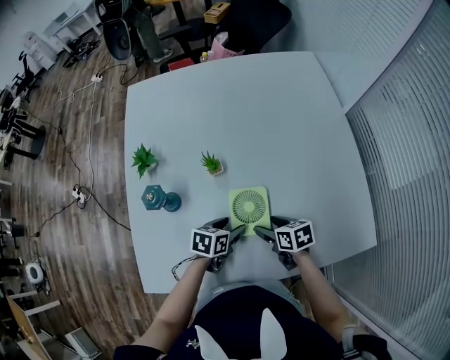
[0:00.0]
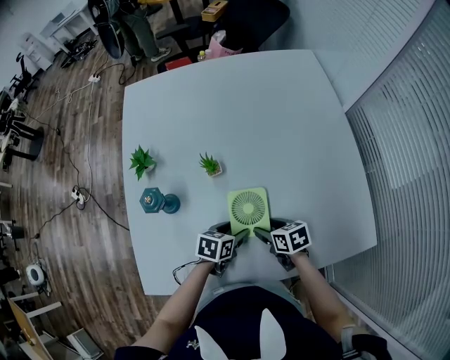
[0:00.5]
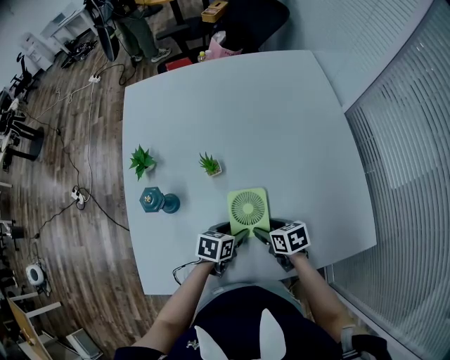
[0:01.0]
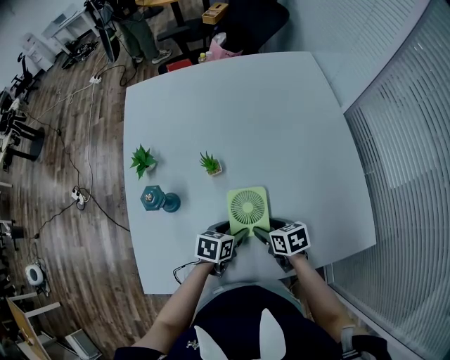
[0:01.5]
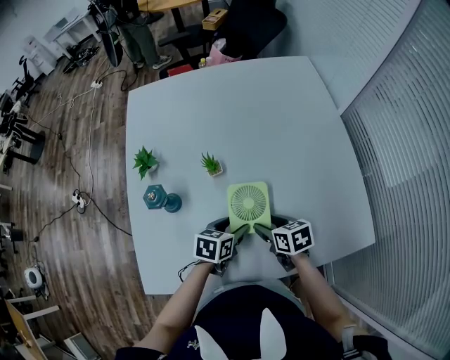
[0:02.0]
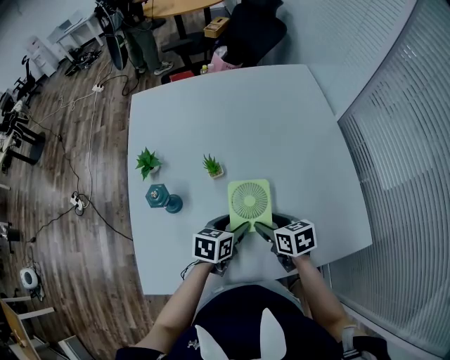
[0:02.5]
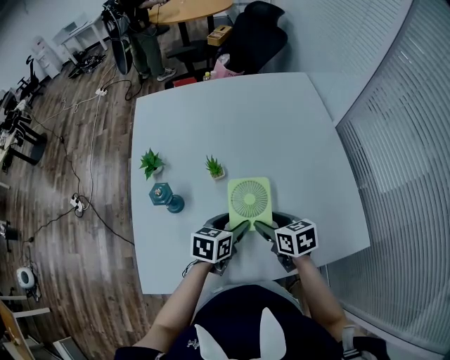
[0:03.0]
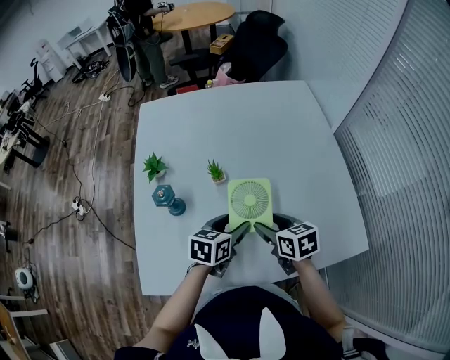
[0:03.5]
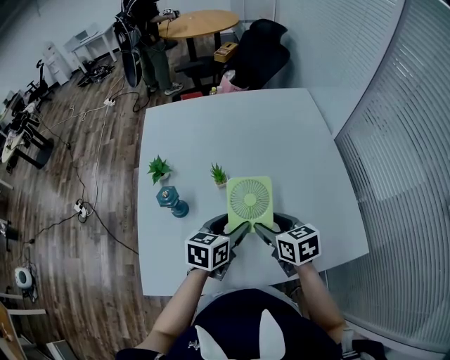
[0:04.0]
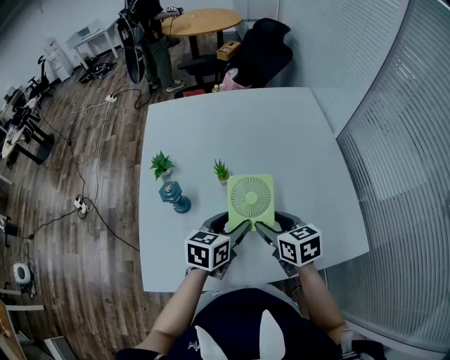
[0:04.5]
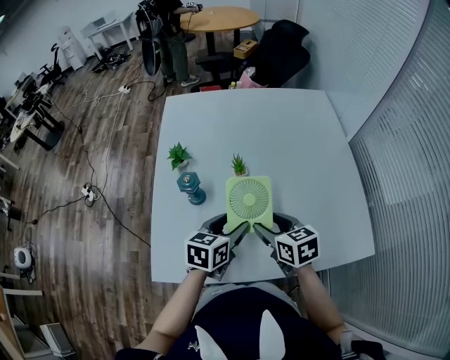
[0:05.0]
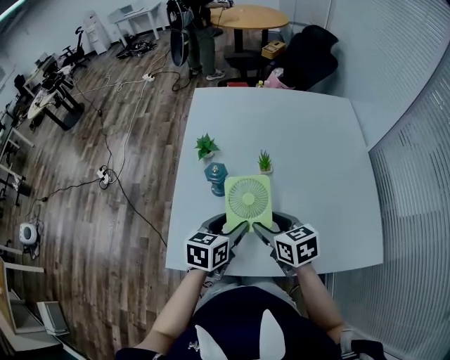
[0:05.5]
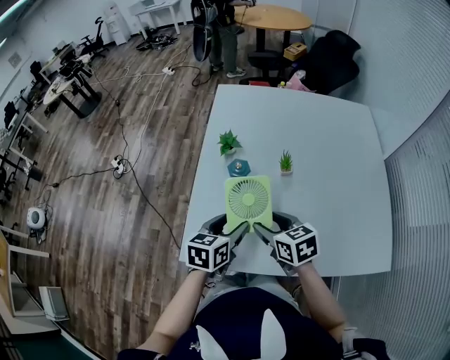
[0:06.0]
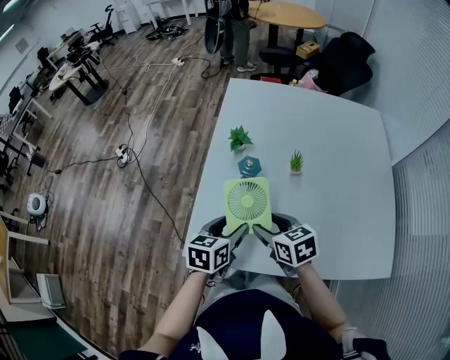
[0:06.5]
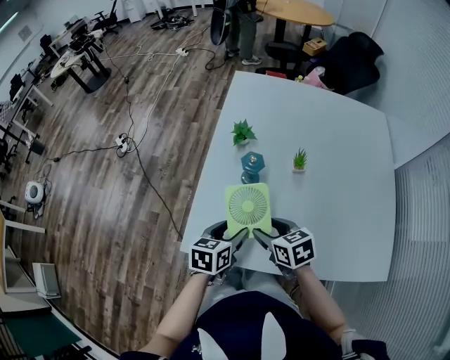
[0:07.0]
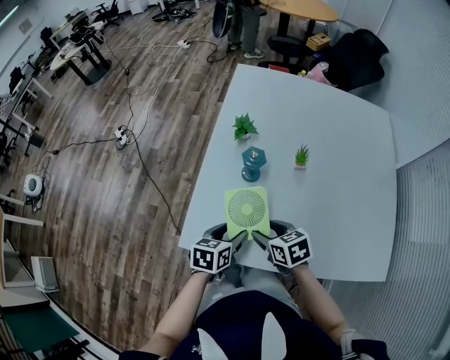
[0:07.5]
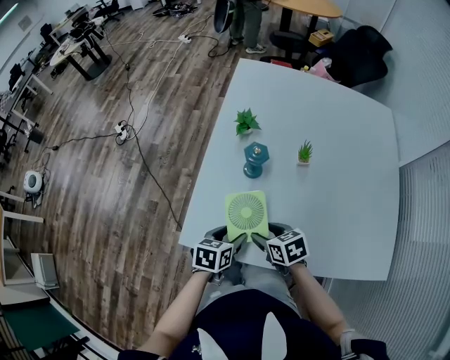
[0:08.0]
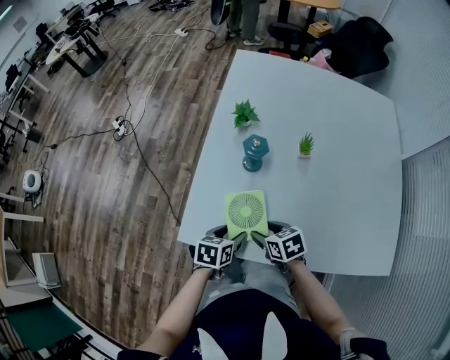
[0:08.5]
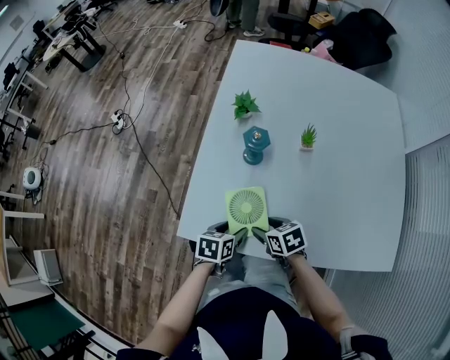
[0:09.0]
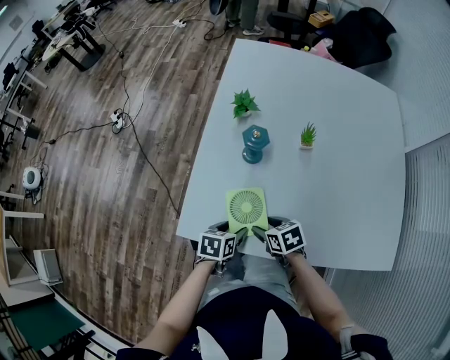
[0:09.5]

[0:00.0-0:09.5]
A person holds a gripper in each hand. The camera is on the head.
0:00.0 to 0:02.0: The grippers move only a little.
0:02.0 to 0:04.0: Both grippers travel together upward, approximately 15 cm.
0:04.0 to 0:05.5: The left gripper is displaced to the left and backward by about 15 cm. Meanwhile the right gripper shifts approximately 15 cm to the left.
0:05.5 to 0:07.5: The two grippers go roughly 15 cm to the left and downward.
0:07.5 to 0:09.5: The grippers both shift downward by some 10 cm.

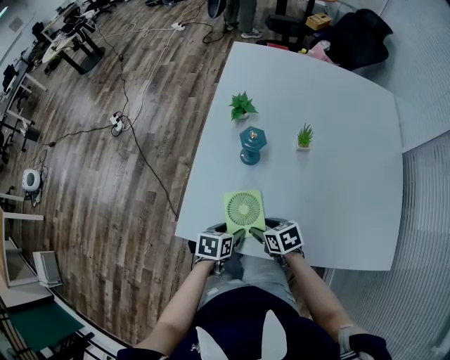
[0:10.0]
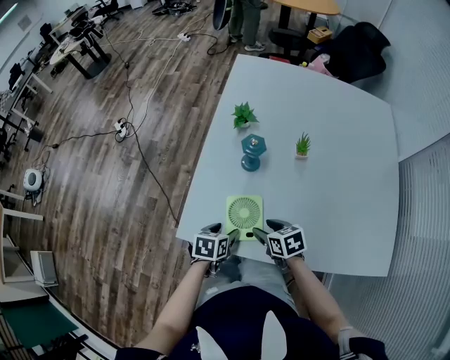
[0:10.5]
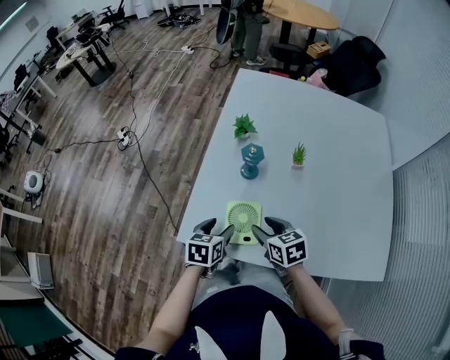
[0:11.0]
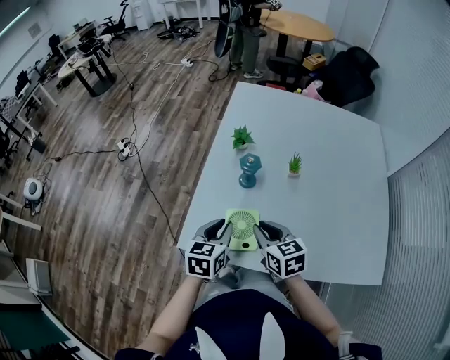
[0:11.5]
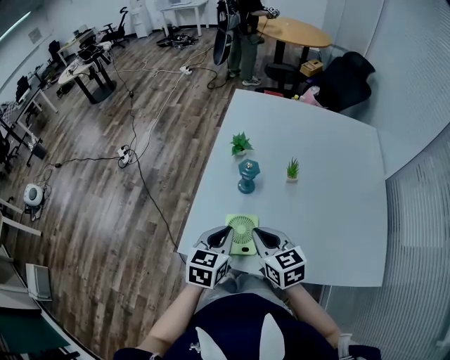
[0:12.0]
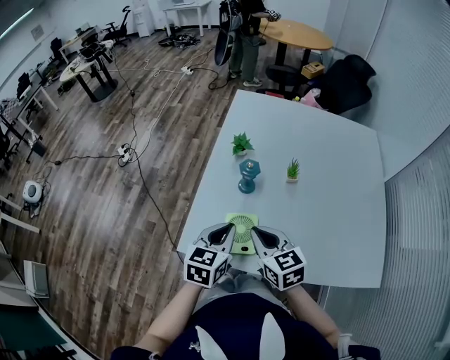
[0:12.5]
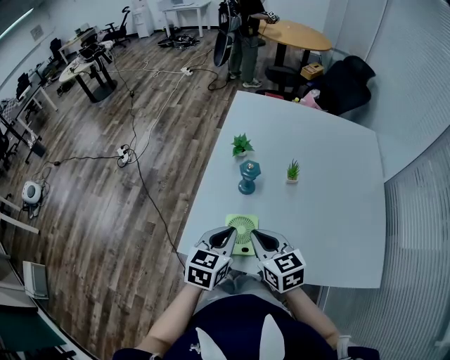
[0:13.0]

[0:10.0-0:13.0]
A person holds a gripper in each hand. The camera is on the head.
0:10.0 to 0:11.5: The two grippers go about 15 cm upward. The right gripper swivels roughly 30 degrees, and closes up; the left gripper changes its angle by roughly 30 degrees, and closes up.
0:11.5 to 0:13.0: The left gripper moves some 5 cm; the right gripper changes place by some 5 cm.

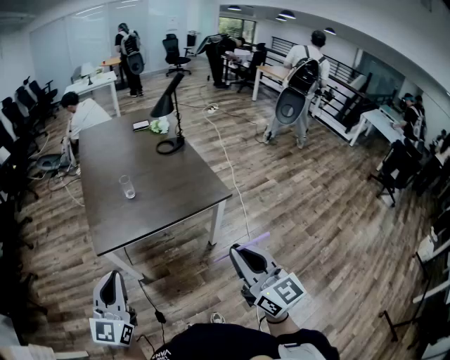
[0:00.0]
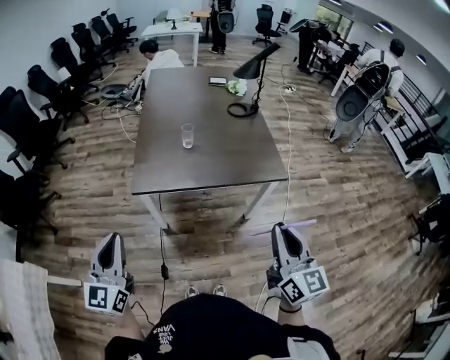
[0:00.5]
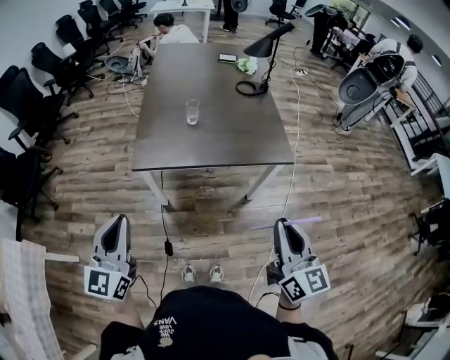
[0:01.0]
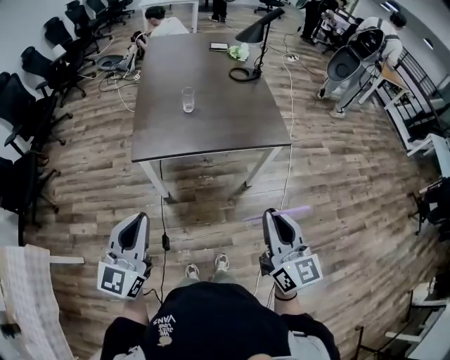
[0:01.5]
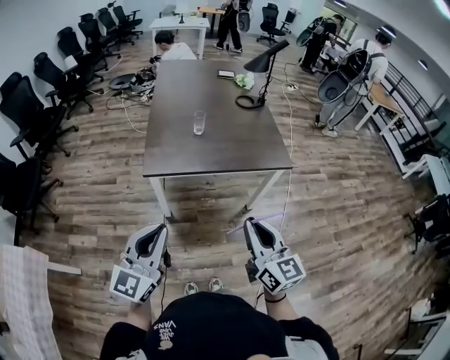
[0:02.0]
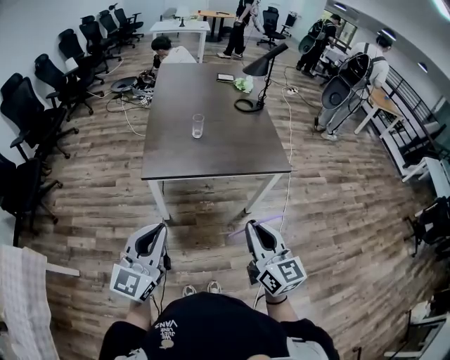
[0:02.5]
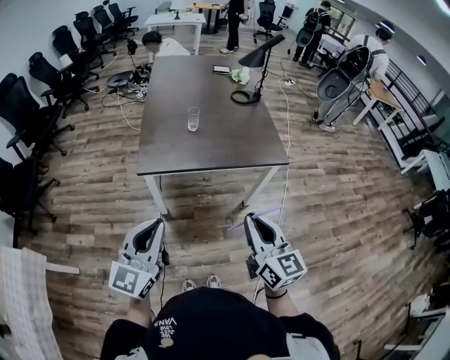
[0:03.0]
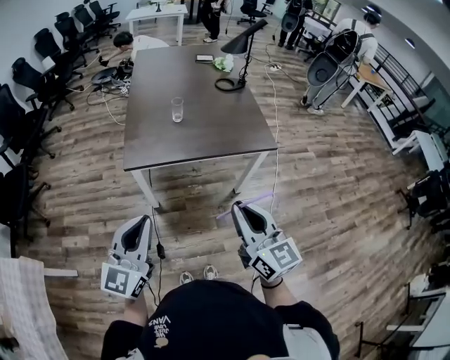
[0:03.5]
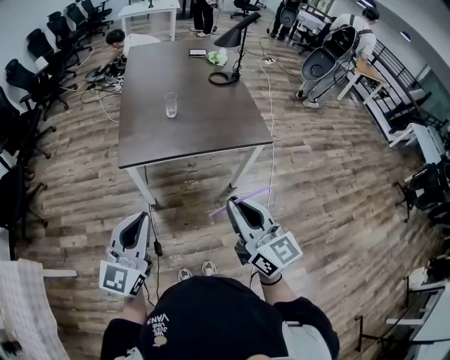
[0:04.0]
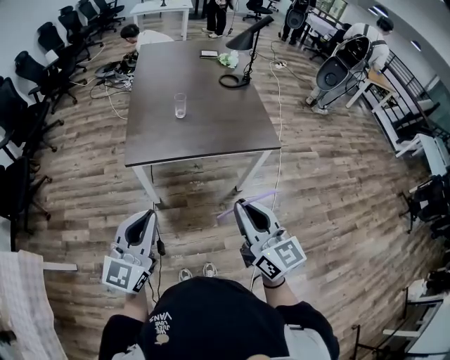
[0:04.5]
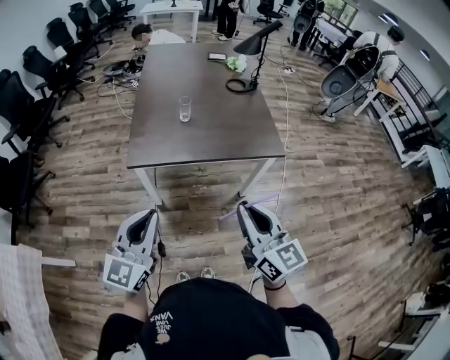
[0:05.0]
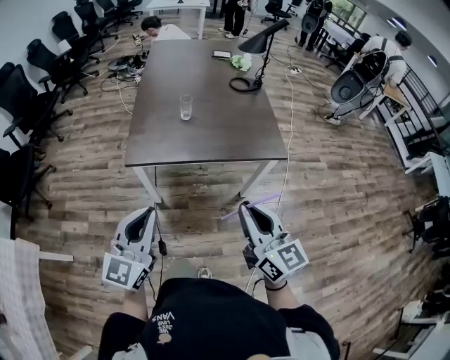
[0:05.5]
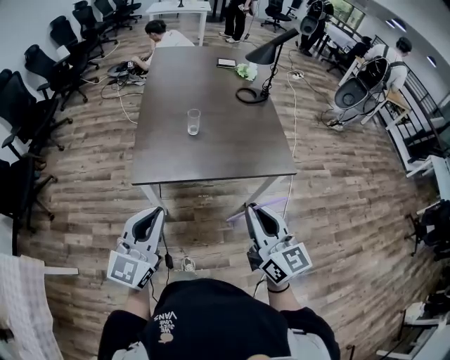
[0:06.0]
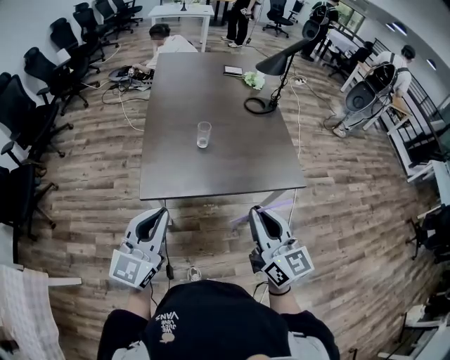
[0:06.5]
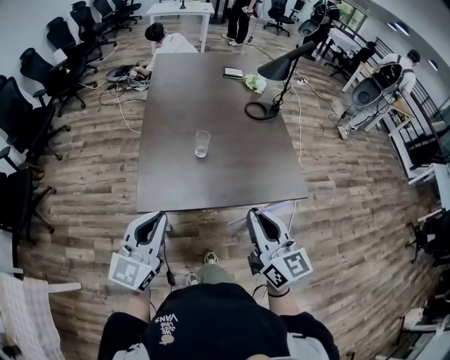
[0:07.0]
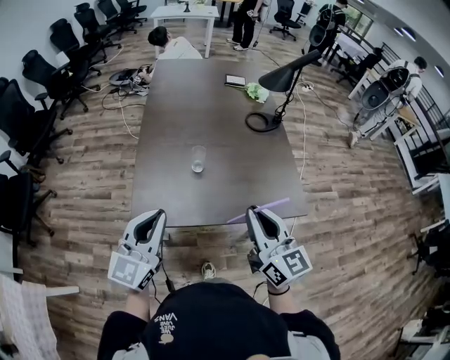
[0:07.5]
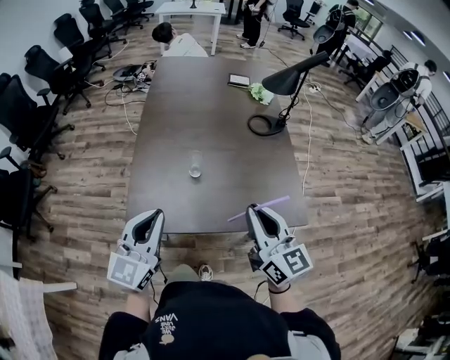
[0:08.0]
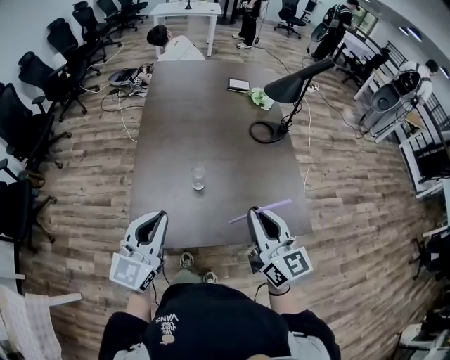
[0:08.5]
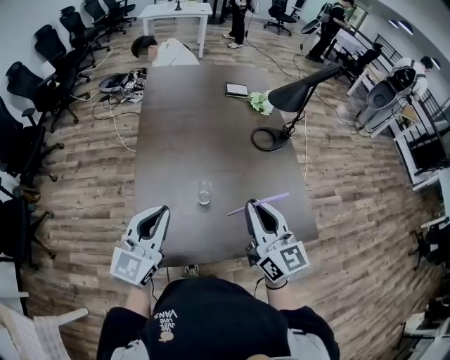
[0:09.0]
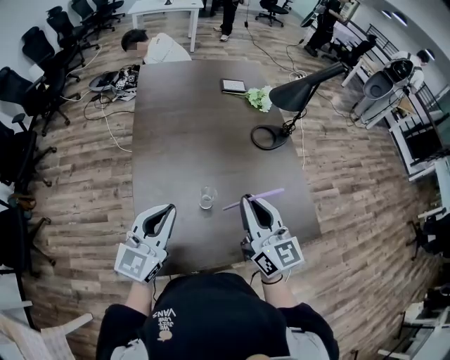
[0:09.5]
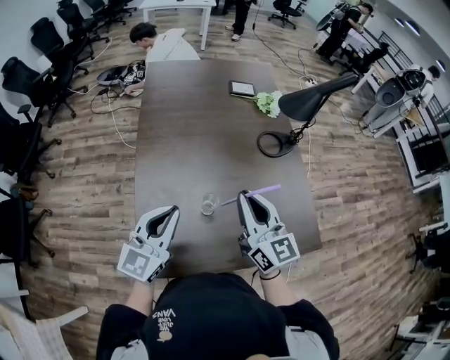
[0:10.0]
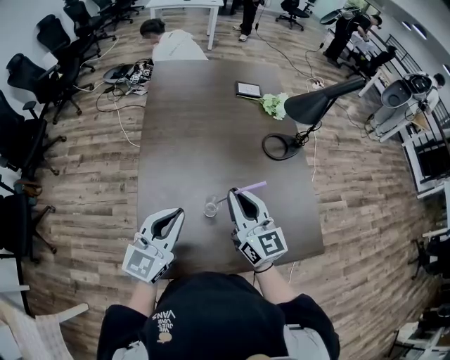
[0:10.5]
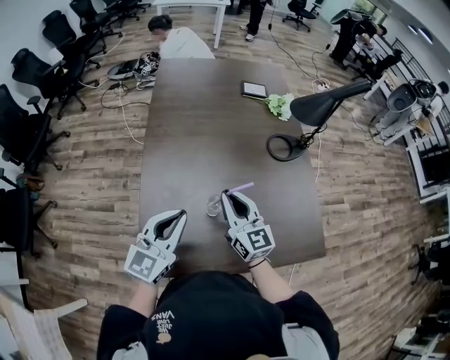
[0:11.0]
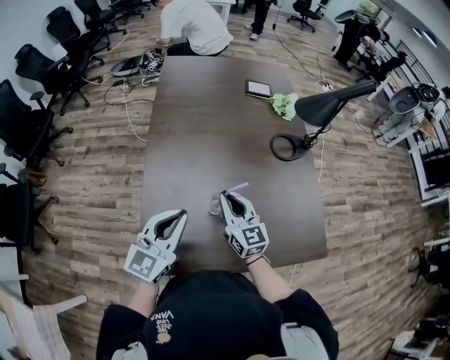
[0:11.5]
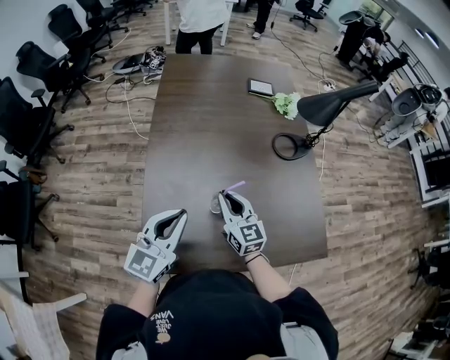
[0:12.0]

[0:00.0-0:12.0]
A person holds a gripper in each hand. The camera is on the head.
0:00.0 to 0:02.0: The right gripper is displaced to the left and downward by some 15 cm, while the left gripper moves approximately 10 cm to the left and comes back.
0:02.0 to 0:04.0: The grippers make only small movements.
0:04.0 to 0:06.0: Both grippers move forward, approximately 15 cm.
0:06.0 to 0:08.0: The two grippers go approximately 25 cm forward.
0:08.0 to 0:10.0: The right gripper is displaced forward and to the left by roughly 25 cm, while the left gripper is displaced forward by approximately 20 cm.
0:10.0 to 0:12.0: The right gripper is displaced downward and to the left by approximately 15 cm.

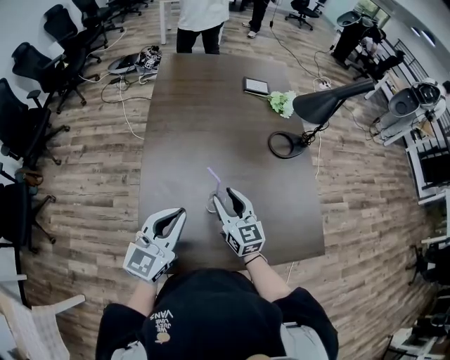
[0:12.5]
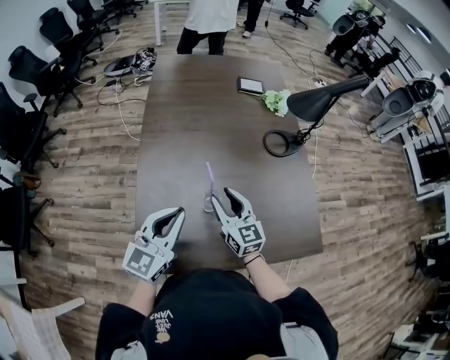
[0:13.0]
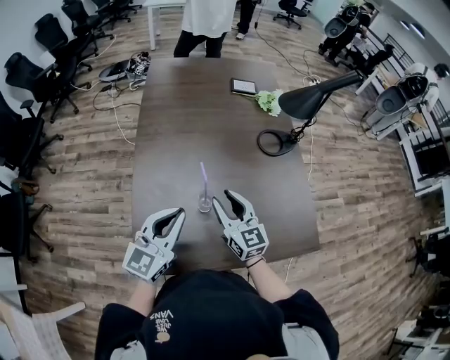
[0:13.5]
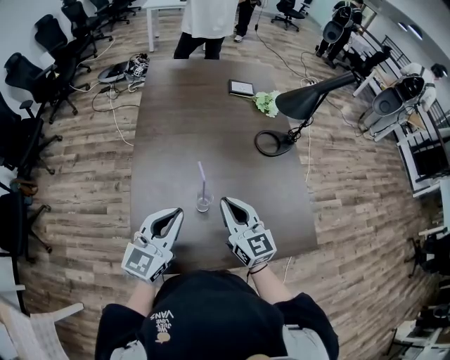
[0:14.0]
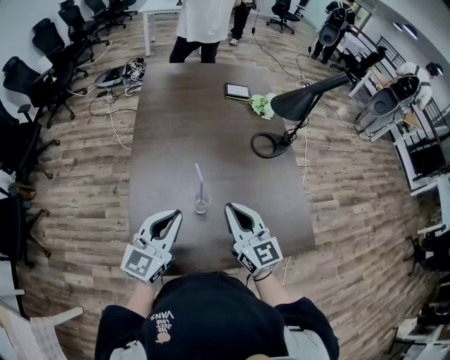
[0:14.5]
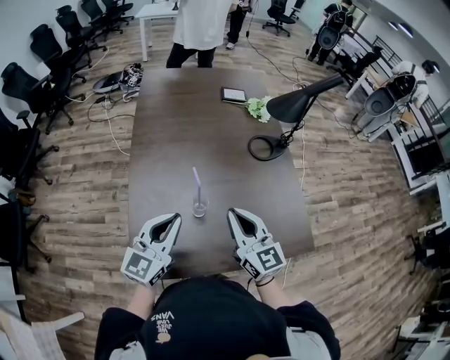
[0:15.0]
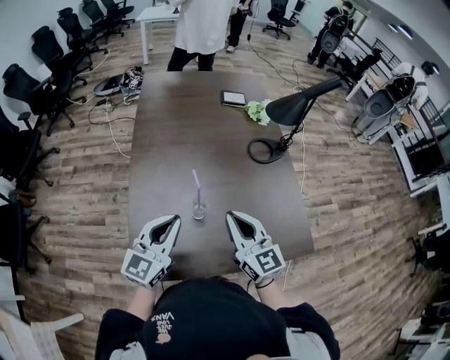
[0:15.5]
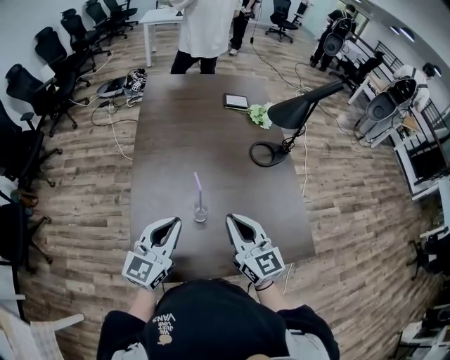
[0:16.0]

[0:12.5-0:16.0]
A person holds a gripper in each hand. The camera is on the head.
0:12.5 to 0:14.5: The right gripper heads upward, backward and to the right, covering about 15 cm, and closes its fingers.
0:14.5 to 0:16.0: There are only small adjustments of the grippers.
